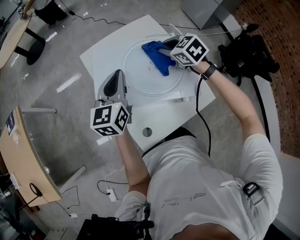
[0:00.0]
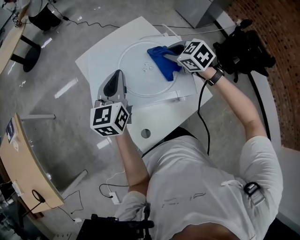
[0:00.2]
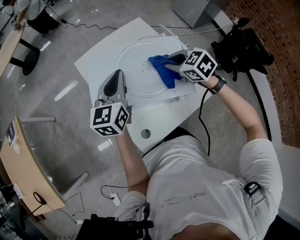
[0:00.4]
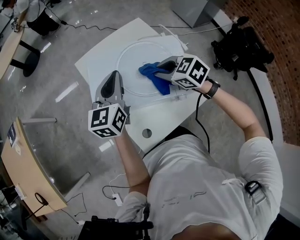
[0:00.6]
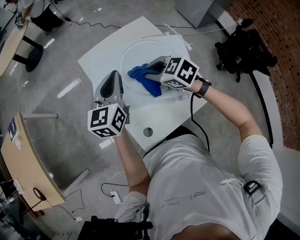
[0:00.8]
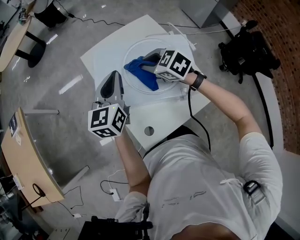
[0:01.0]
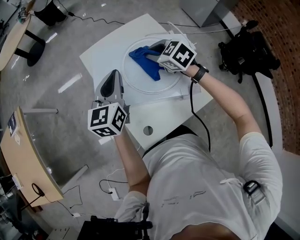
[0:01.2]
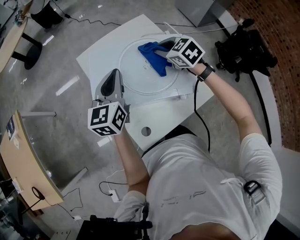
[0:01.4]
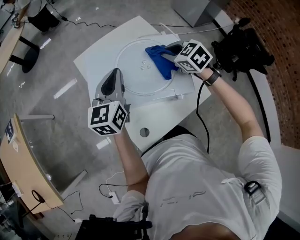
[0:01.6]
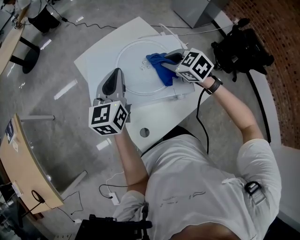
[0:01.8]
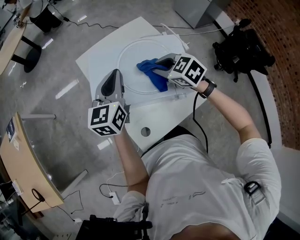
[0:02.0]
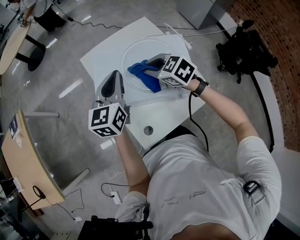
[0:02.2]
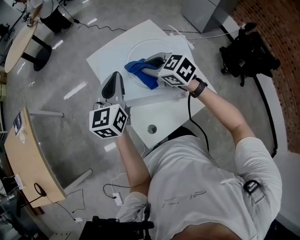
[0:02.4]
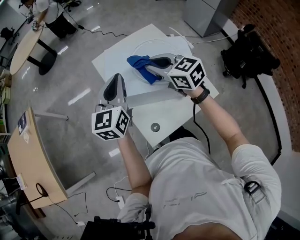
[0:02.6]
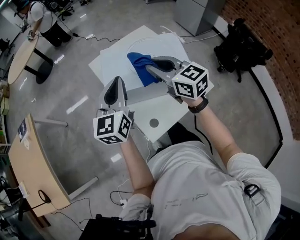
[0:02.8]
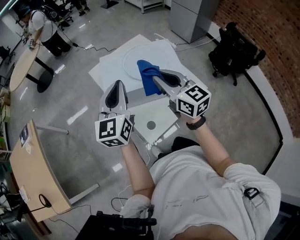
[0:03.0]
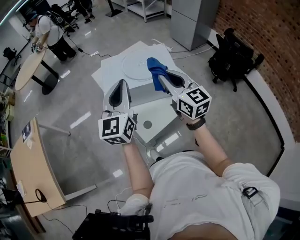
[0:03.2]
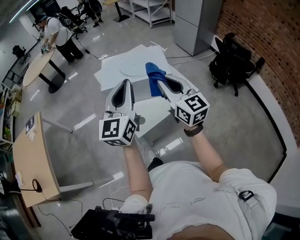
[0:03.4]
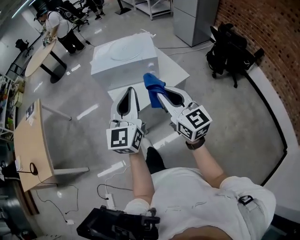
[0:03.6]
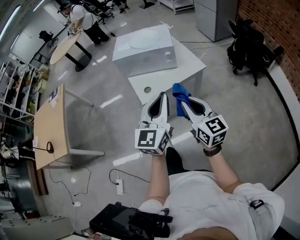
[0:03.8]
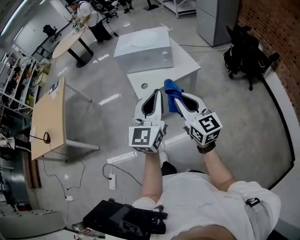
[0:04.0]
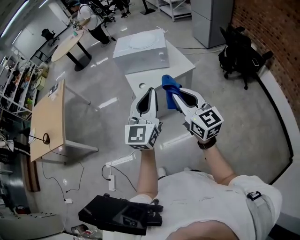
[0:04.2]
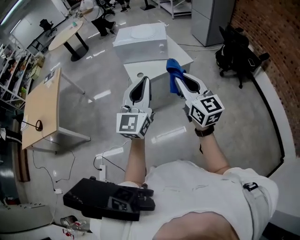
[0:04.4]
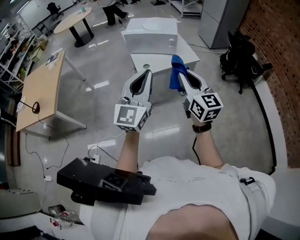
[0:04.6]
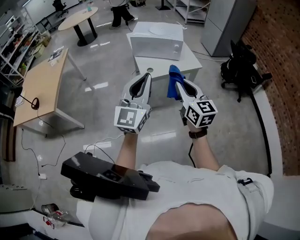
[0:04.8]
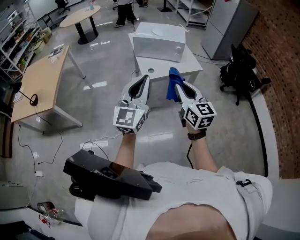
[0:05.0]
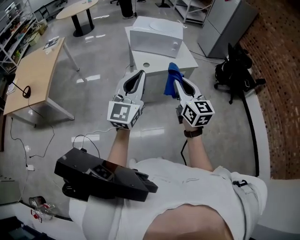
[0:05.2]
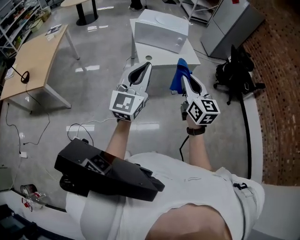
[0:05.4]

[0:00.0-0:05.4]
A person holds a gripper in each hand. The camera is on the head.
0:00.0 to 0:01.4: The right gripper moves roughly 10 cm to the left and comes back.
0:01.4 to 0:02.8: The left gripper travels backward, upward and to the left by some 15 cm. The right gripper moves backward, upward and to the left, some 25 cm, and angles its fingers upward, by about 40 degrees.
0:02.8 to 0:04.0: The pair of grippers is taken backward and to the right, some 50 cm.
0:04.0 to 0:05.4: The right gripper moves backward and to the left, roughly 10 cm; the left gripper travels to the left and backward by approximately 20 cm.

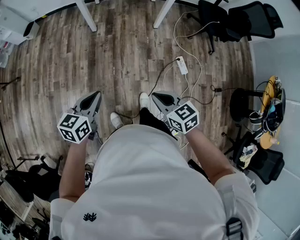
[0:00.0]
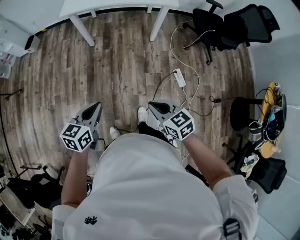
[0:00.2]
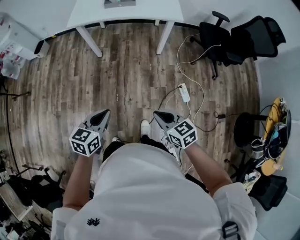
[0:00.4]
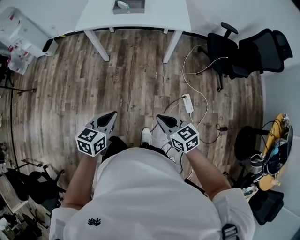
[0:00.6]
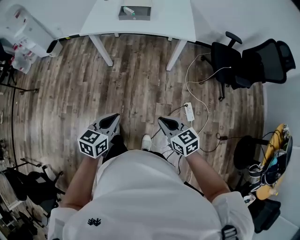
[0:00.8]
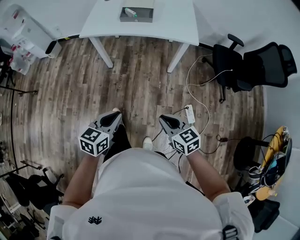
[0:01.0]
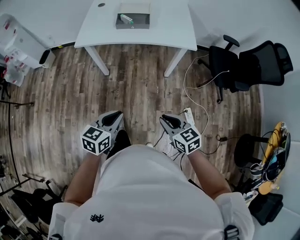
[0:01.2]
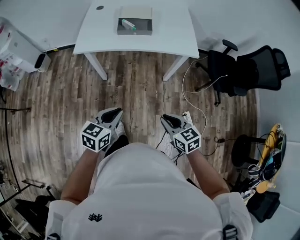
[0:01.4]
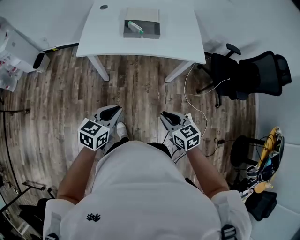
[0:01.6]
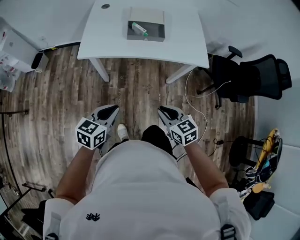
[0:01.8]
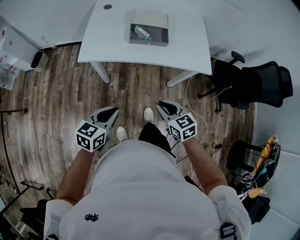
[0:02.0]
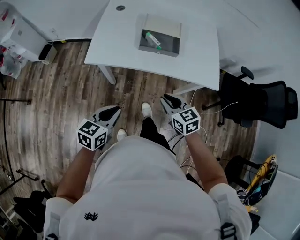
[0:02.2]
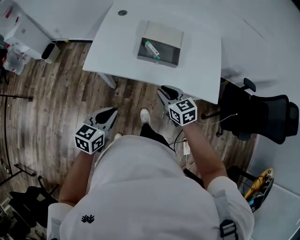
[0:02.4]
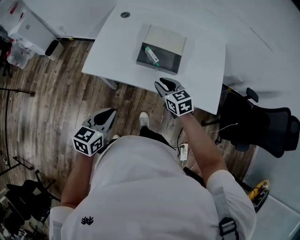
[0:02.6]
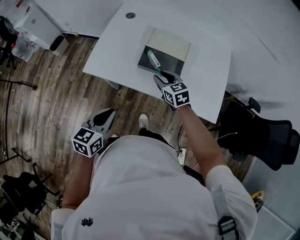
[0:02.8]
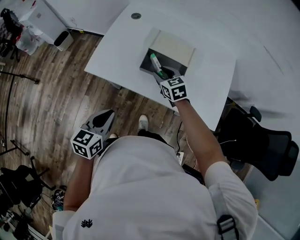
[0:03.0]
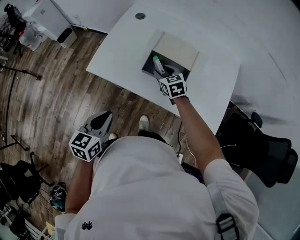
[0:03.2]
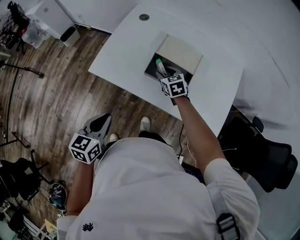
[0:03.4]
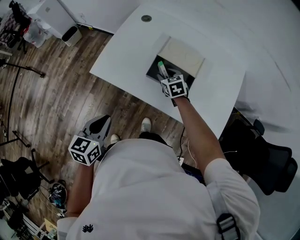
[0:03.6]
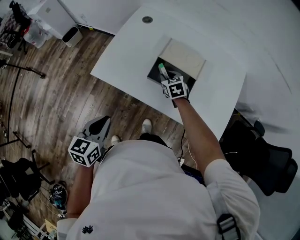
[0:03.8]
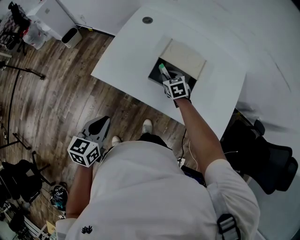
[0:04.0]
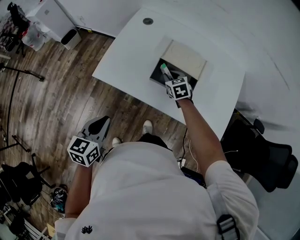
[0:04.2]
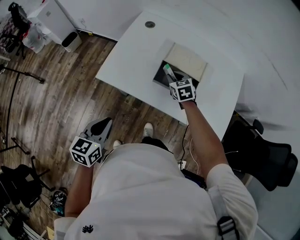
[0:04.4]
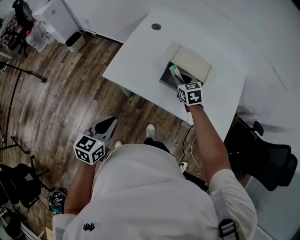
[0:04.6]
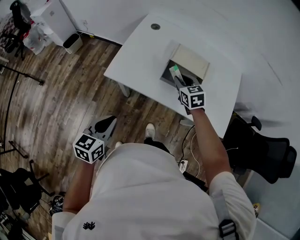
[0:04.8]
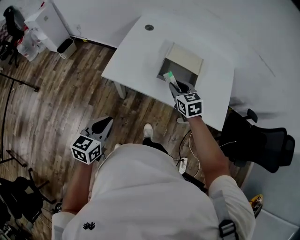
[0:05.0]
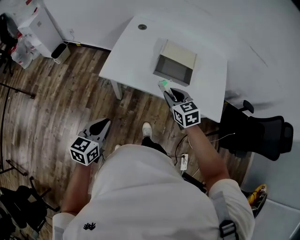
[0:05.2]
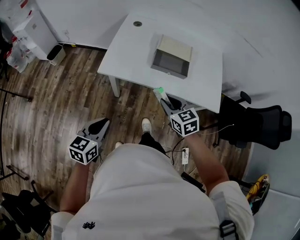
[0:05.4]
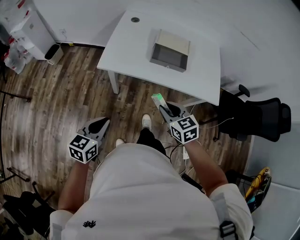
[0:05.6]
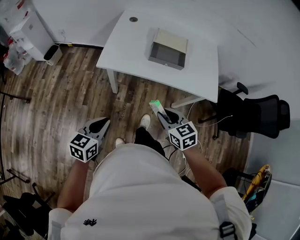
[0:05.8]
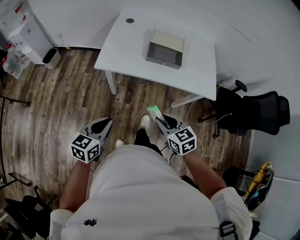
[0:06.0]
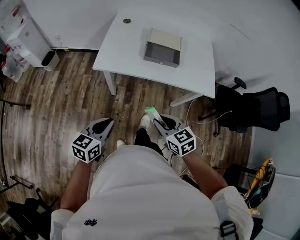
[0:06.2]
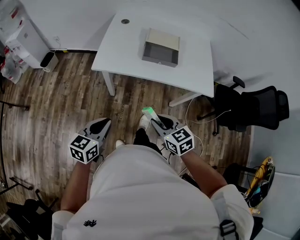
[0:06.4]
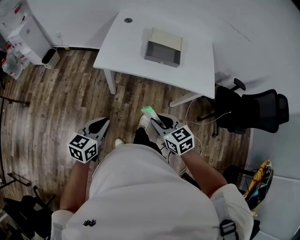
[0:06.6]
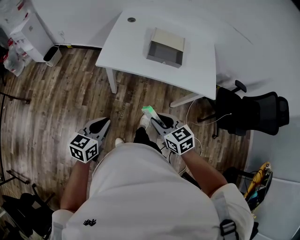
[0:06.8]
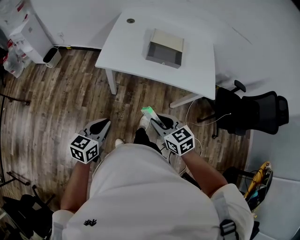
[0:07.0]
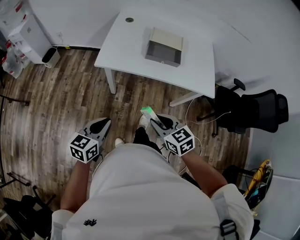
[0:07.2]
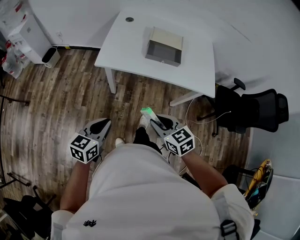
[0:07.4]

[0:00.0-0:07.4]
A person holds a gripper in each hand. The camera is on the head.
0:00.0 to 0:01.4: Both grippers travel together forward, about 30 cm.
0:01.4 to 0:03.0: The left gripper heads forward, covering about 30 cm, and changes its angle by approximately 30 degrees. Meanwhile the right gripper is displaced forward by some 60 cm, turns by about 20 degrees, and opens up.
0:03.0 to 0:04.4: The left gripper travels to the left by about 5 cm. Meanwhile the right gripper travels forward by some 5 cm.
0:04.4 to 0:06.0: The right gripper heads backward, covering some 40 cm; the left gripper is displaced backward and to the left by approximately 15 cm, and swivels about 20 degrees.
0:06.0 to 0:07.4: The grippers make only small movements.

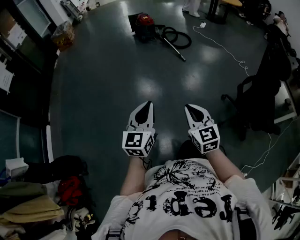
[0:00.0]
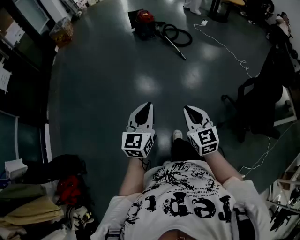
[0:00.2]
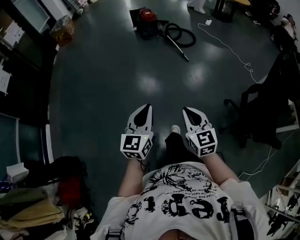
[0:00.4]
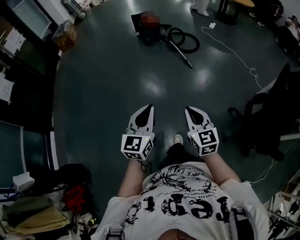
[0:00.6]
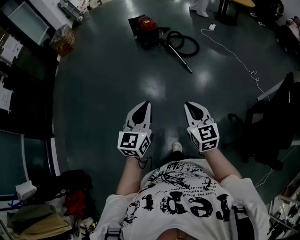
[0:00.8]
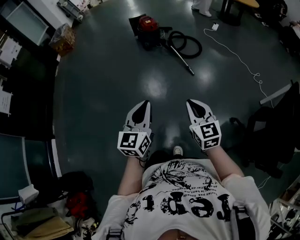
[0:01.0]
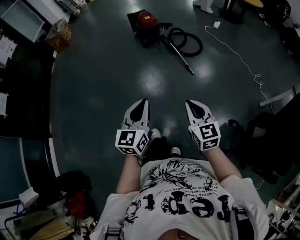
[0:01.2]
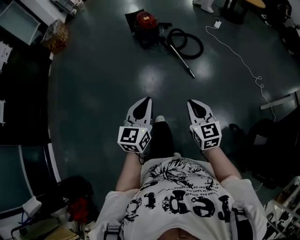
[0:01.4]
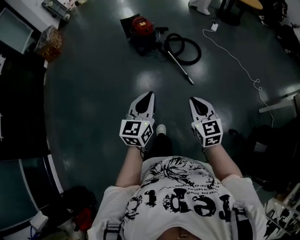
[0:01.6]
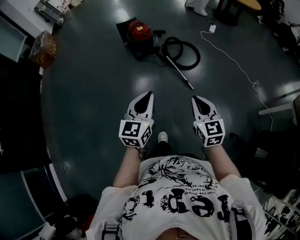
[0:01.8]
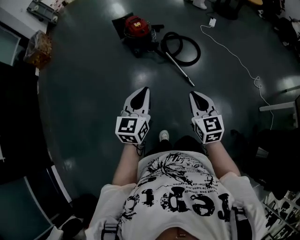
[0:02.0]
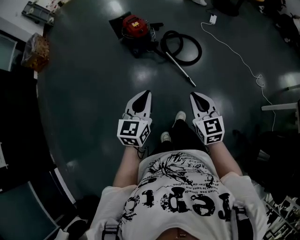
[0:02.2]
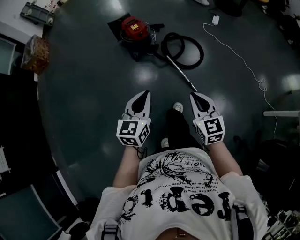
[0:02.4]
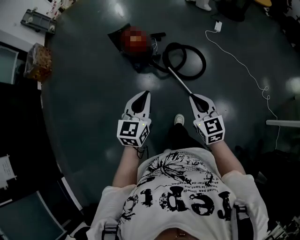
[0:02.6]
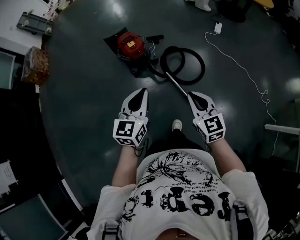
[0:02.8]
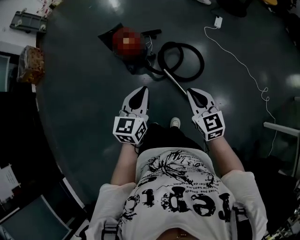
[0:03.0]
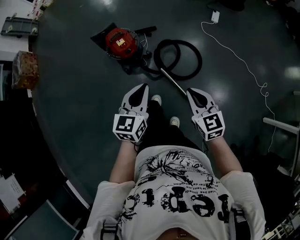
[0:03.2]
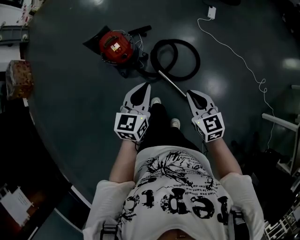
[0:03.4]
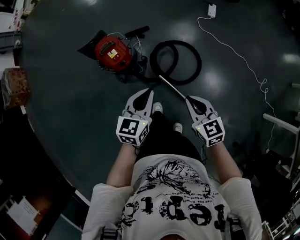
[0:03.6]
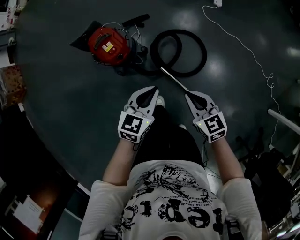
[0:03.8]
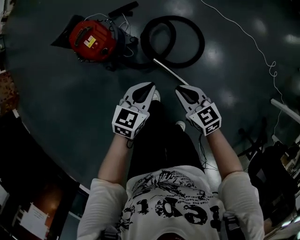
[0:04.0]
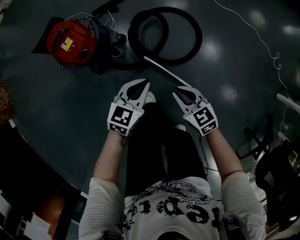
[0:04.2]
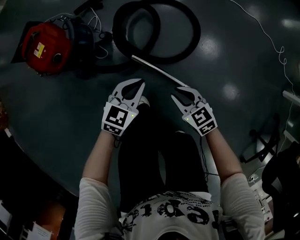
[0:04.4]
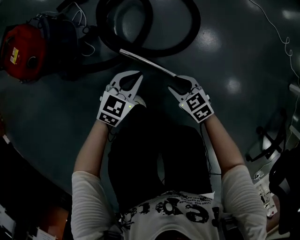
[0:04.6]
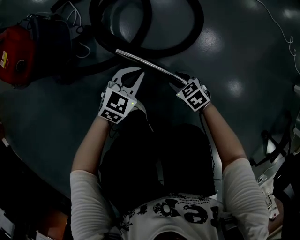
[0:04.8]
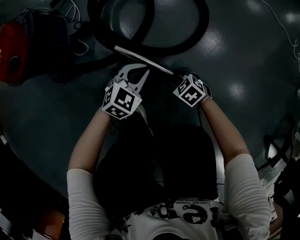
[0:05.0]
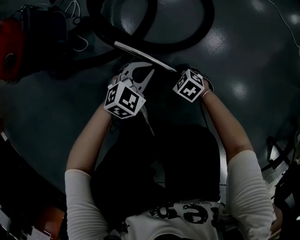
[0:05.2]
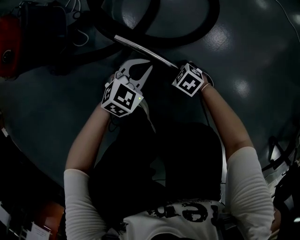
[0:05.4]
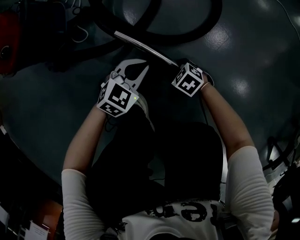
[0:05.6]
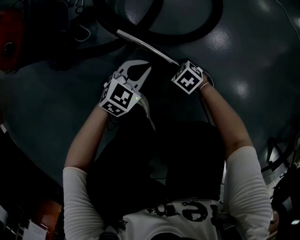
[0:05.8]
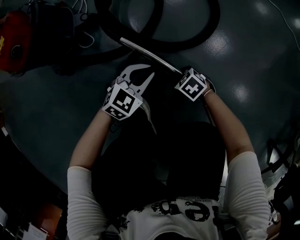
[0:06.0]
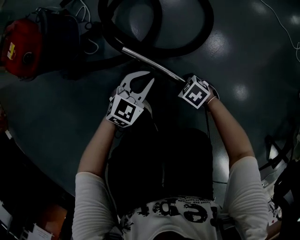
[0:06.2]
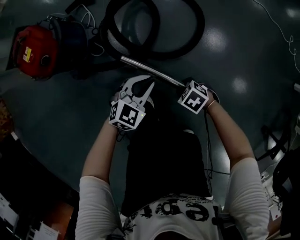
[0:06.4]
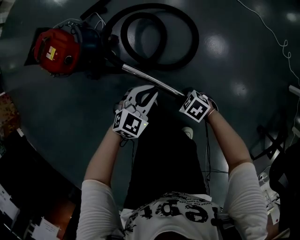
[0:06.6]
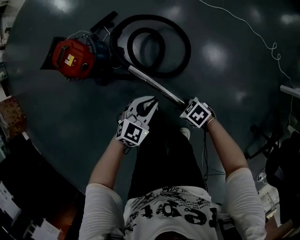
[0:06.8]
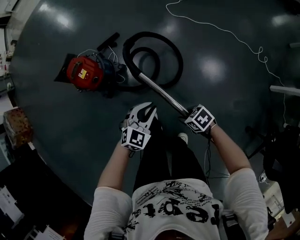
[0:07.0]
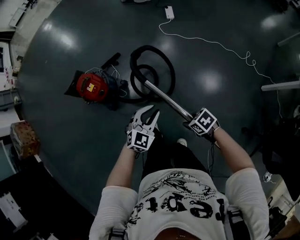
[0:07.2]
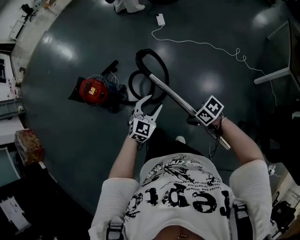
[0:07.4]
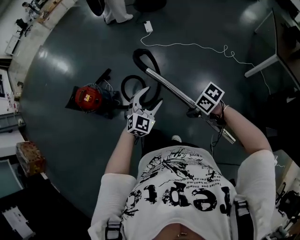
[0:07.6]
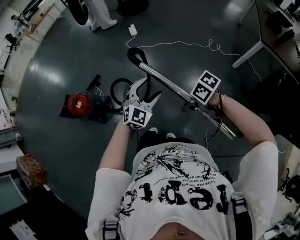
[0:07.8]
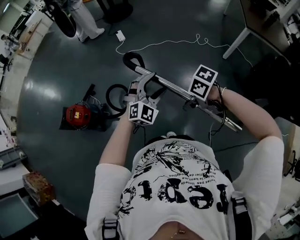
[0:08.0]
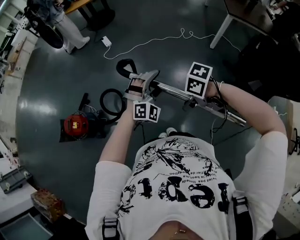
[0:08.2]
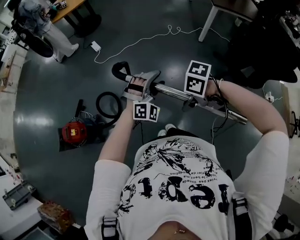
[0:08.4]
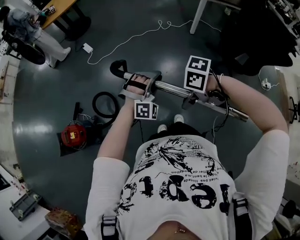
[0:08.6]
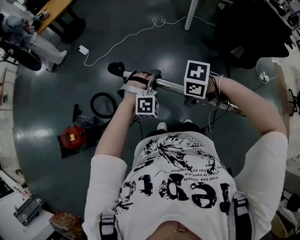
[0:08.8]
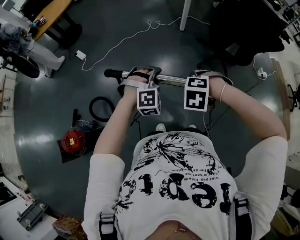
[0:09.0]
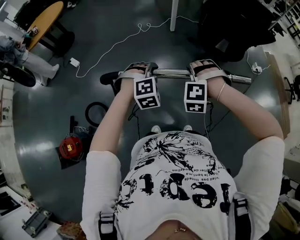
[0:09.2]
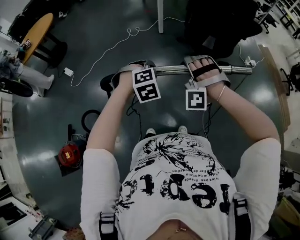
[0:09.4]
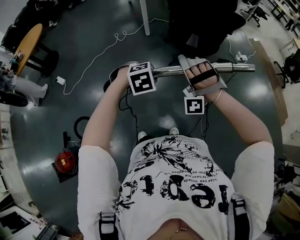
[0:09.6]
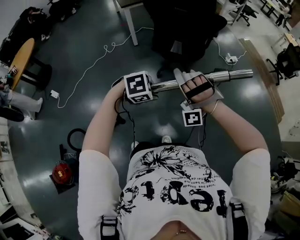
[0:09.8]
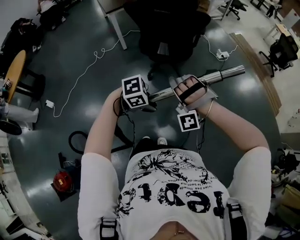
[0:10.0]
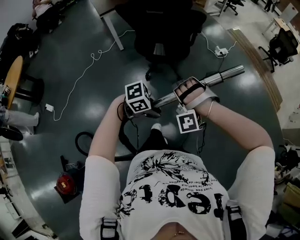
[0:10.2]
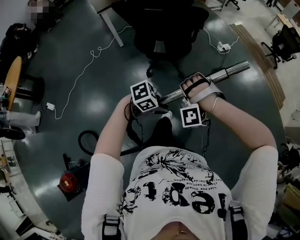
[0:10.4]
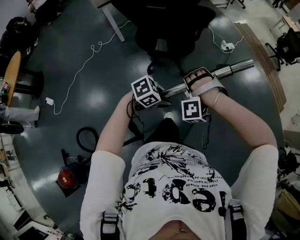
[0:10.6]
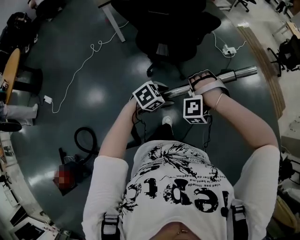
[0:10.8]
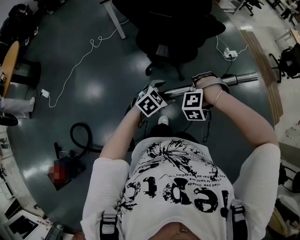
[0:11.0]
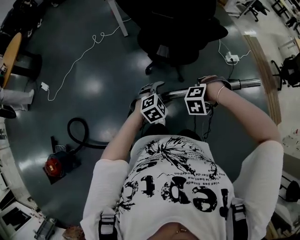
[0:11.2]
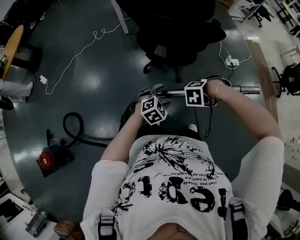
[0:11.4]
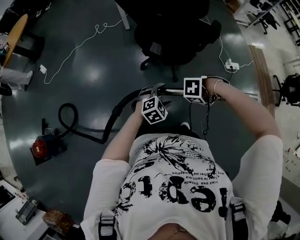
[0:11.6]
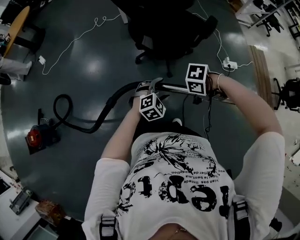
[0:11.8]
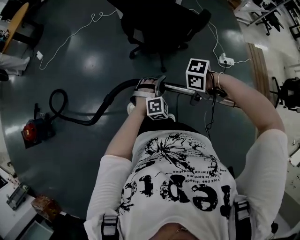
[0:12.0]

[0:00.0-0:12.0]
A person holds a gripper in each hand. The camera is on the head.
0:00.0 to 0:01.6: The left gripper ends up roughly 70 cm from where it was.
0:01.6 to 0:03.0: The left gripper ends up roughly 60 cm from where it was.
0:03.0 to 0:04.4: The left gripper goes some 60 cm downward, and turns by some 50 degrees.
0:04.4 to 0:06.0: The left gripper heads downward, covering about 25 cm.
0:06.0 to 0:07.6: The left gripper shifts about 80 cm upward, rotates some 30 degrees, and opens up.
0:07.6 to 0:09.0: The left gripper ends up roughly 30 cm from where it was, rolls clockwise, seen from behind, by about 60 degrees, and closes its fingers.
0:09.0 to 0:10.4: The left gripper shifts by some 50 cm, and changes its angle by some 80 degrees.
0:10.4 to 0:12.0: The left gripper ends up some 40 cm from where it was, turns by roughly 80 degrees, and opens, then closes once more.
